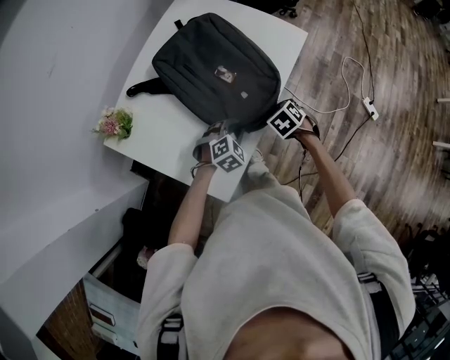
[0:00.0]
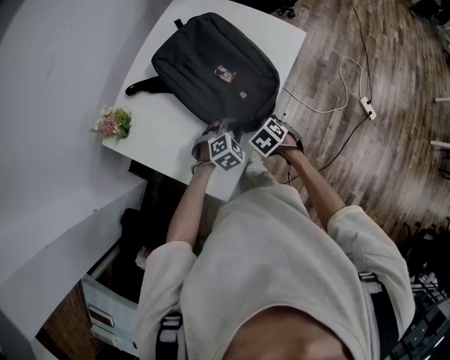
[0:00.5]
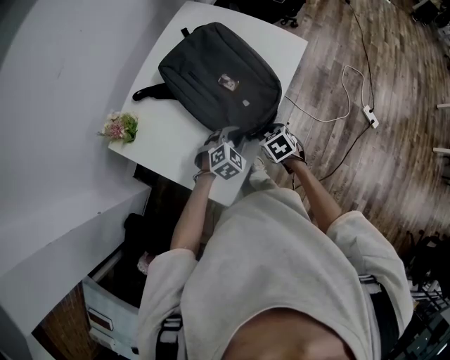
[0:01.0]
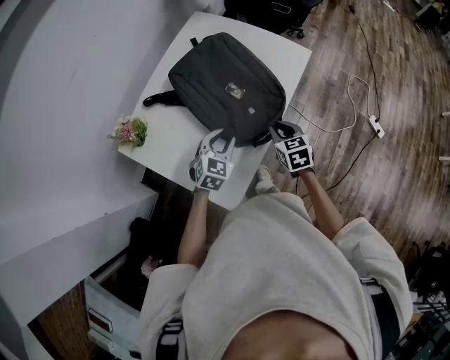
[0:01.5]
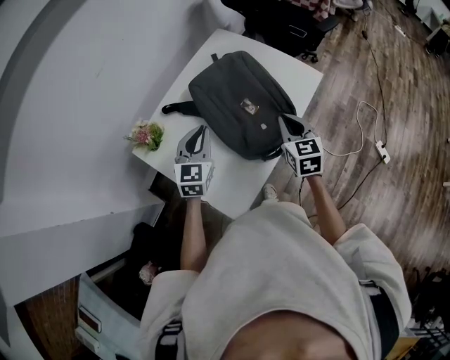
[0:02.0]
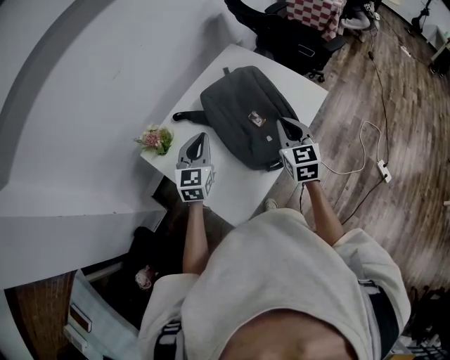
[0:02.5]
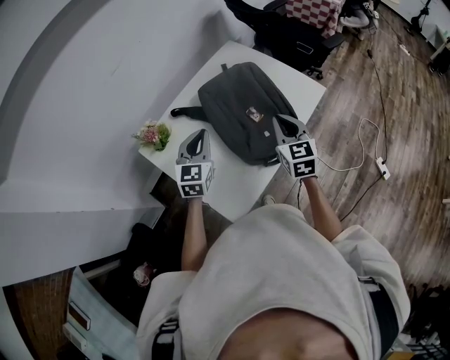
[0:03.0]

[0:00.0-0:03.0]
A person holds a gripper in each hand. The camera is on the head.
0:00.0 to 0:01.5: The two grippers go about 10 cm upward. The left gripper turns by roughly 30 degrees. Meanwhile the right gripper angles its fingers upward, by about 30 degrees.
0:01.5 to 0:03.0: The right gripper moves upward, roughly 15 cm, and swivels approximately 30 degrees. The left gripper heads upward and to the left, covering approximately 20 cm, rotates some 30 degrees, and closes.

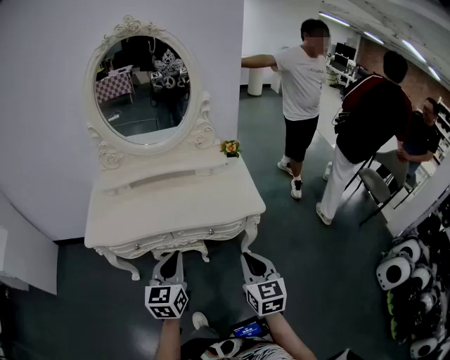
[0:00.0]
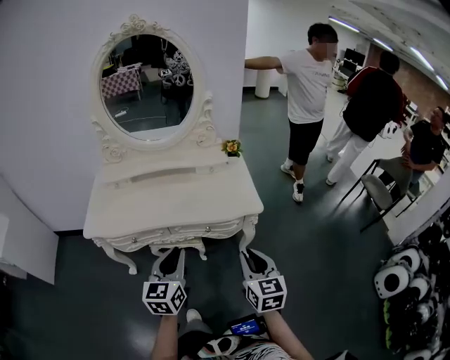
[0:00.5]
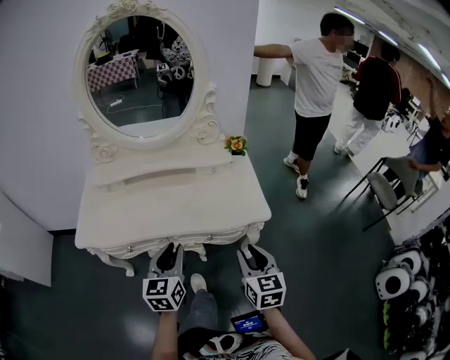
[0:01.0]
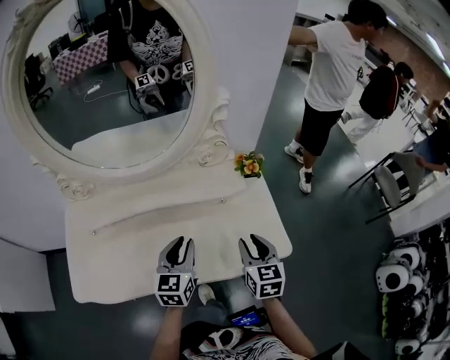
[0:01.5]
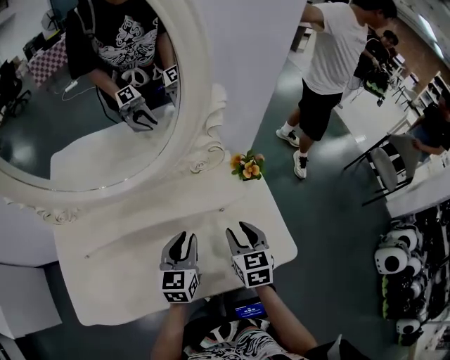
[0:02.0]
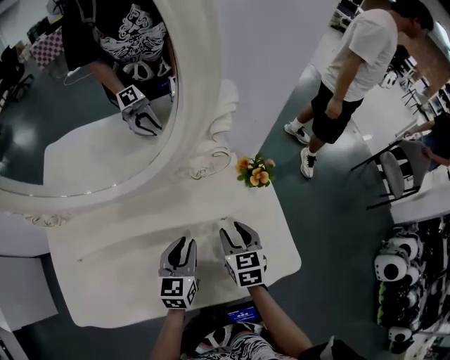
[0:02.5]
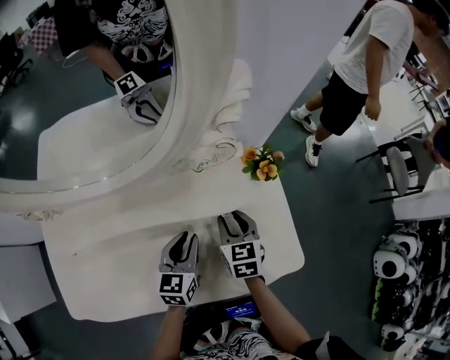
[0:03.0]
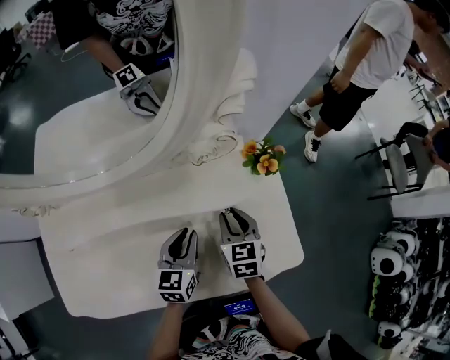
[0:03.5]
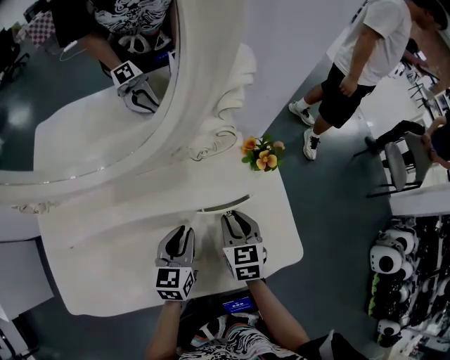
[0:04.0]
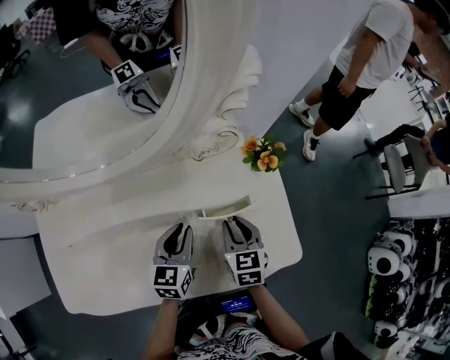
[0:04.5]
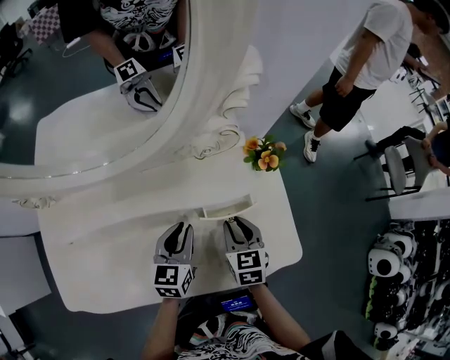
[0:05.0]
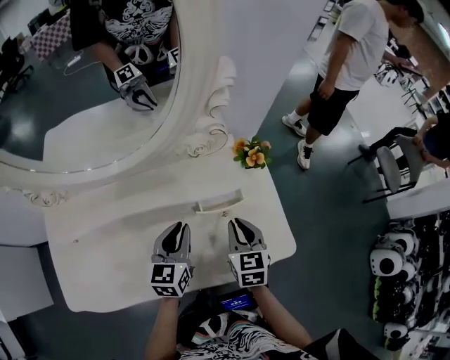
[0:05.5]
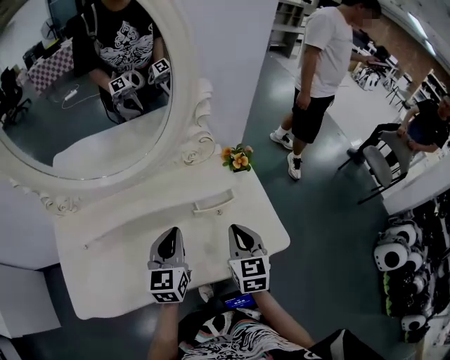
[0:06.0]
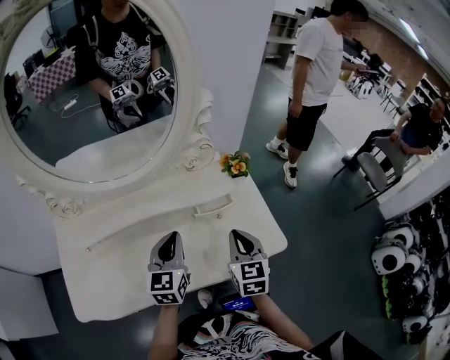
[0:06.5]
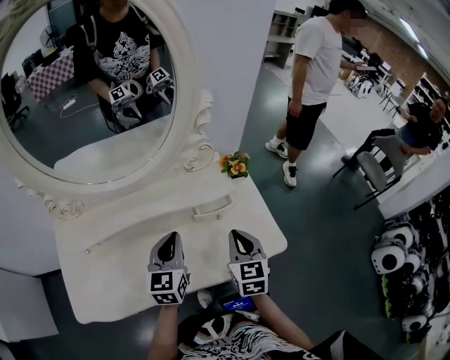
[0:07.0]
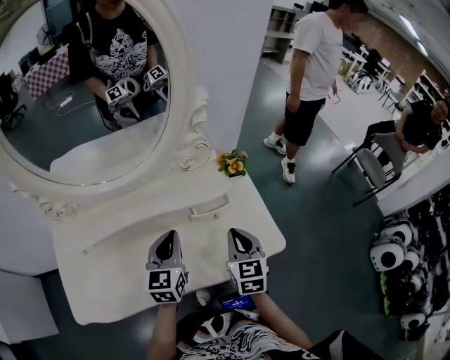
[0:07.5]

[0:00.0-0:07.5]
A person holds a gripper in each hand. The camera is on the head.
0:00.0 to 0:02.0: Both grippers are carried forward, approximately 50 cm. The left gripper opens up. The right gripper opens up.
0:02.0 to 0:04.0: The two grippers go approximately 10 cm downward.
0:04.0 to 0:05.5: The right gripper changes place by roughly 5 cm. The left gripper travels upward by roughly 5 cm.
0:05.5 to 0:07.5: The left gripper shifts approximately 5 cm upward. Meanwhile the right gripper goes about 10 cm upward and backward.

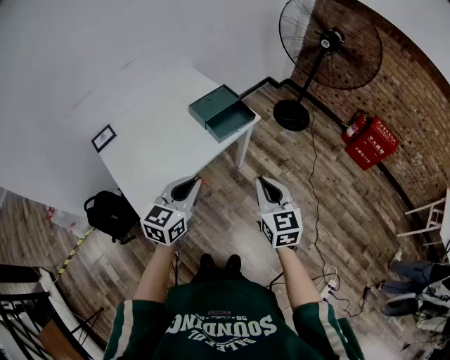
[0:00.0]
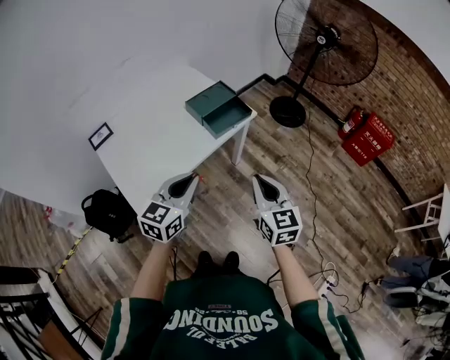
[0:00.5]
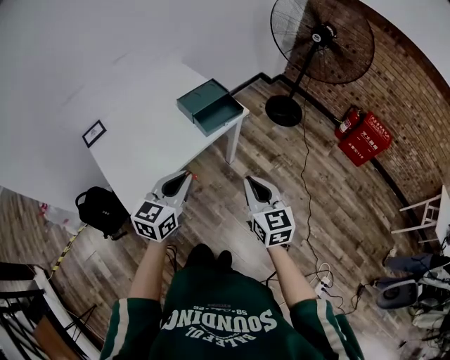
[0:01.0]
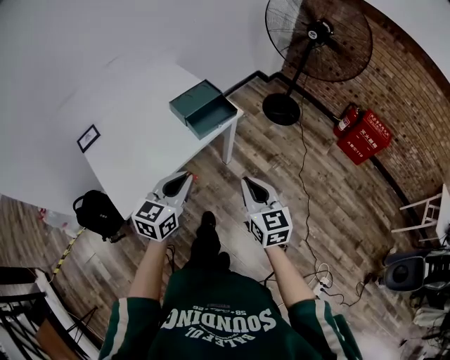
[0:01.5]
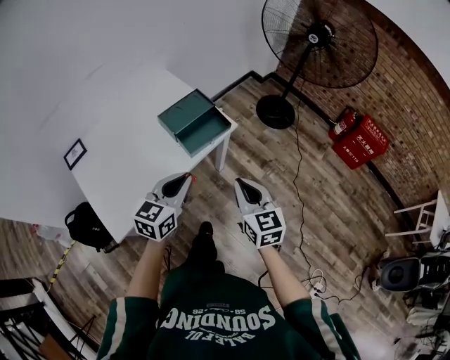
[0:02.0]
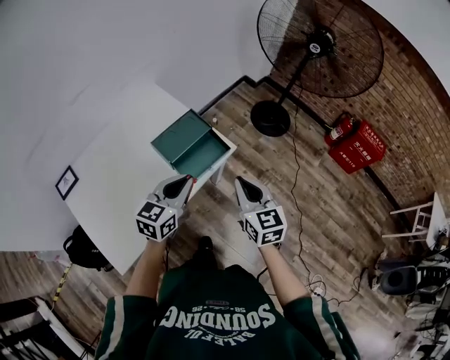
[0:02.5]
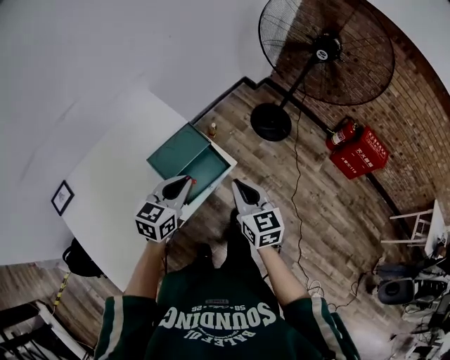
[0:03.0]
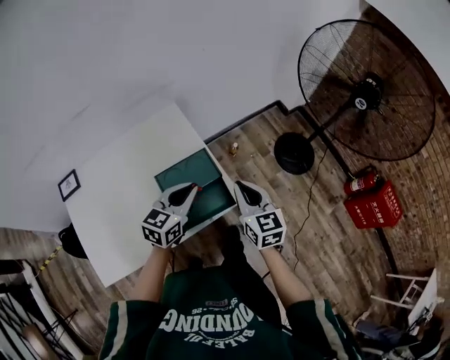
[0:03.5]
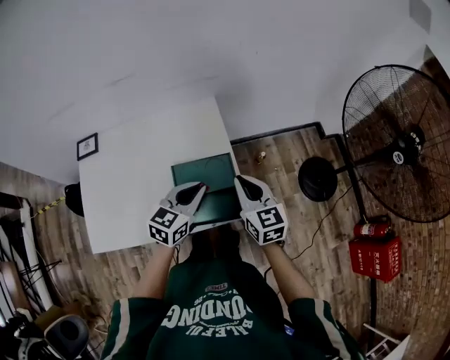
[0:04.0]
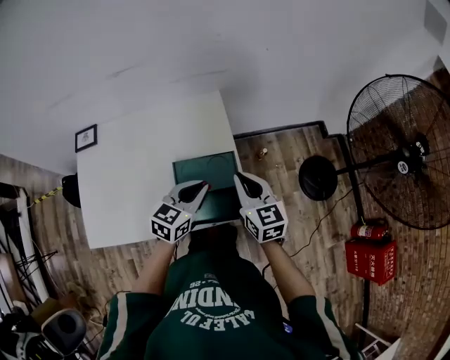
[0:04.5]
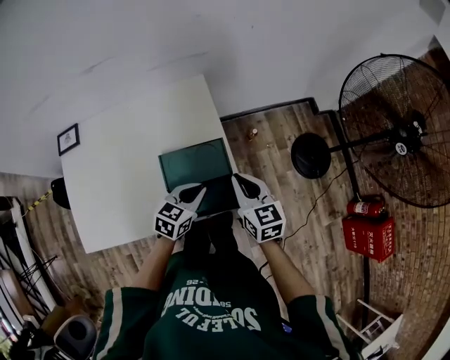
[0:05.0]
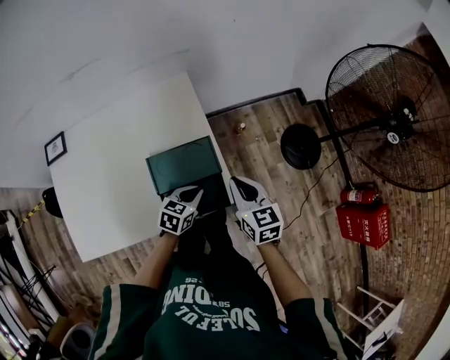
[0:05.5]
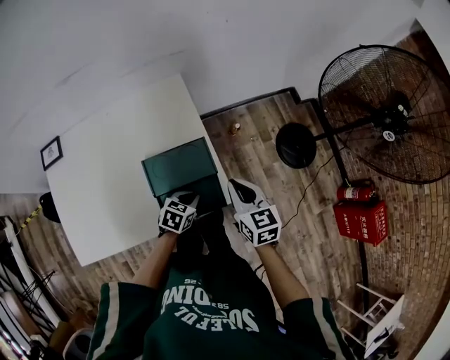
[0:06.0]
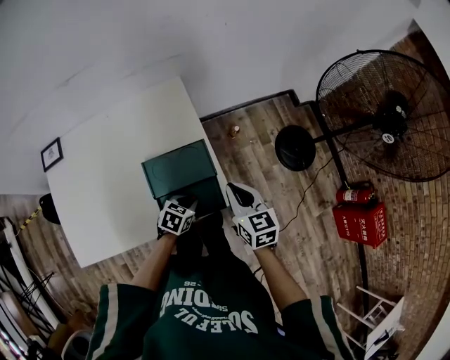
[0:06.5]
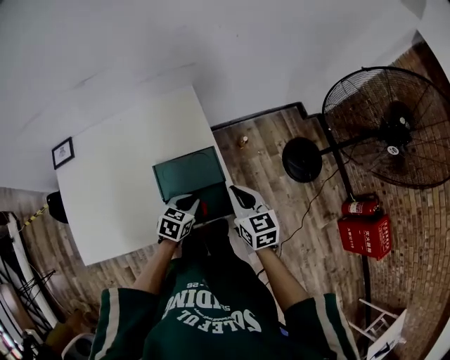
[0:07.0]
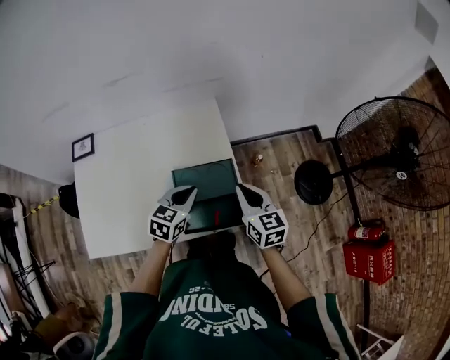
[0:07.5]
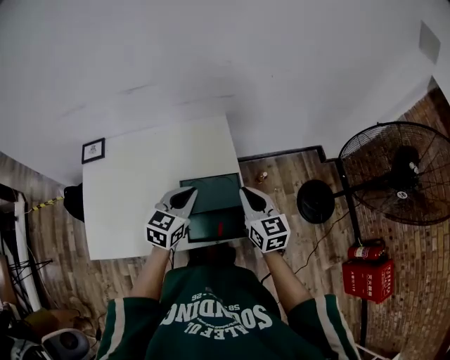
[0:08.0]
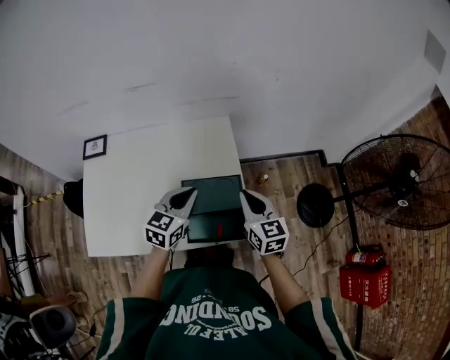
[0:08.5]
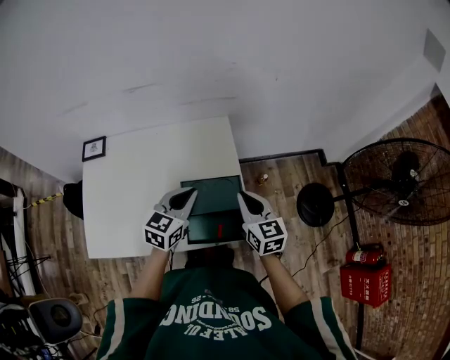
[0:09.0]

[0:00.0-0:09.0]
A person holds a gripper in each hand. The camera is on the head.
0:00.0 to 0:02.0: The right gripper travels forward by about 10 cm. The left gripper shifts about 15 cm forward and to the right.
0:02.0 to 0:04.5: The left gripper shifts by approximately 35 cm, and swivels roughly 30 degrees; the right gripper moves about 40 cm, and rotates approximately 30 degrees.
0:04.5 to 0:07.0: The left gripper shifts approximately 15 cm downward, and changes its angle by about 20 degrees. Meanwhile the right gripper travels downward by some 5 cm.
0:07.0 to 0:09.0: The left gripper heads upward and to the left, covering roughly 20 cm, and changes its angle by roughly 30 degrees. Meanwhile the right gripper shifts approximately 10 cm upward and to the left.

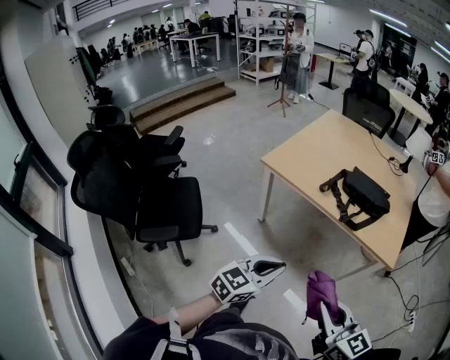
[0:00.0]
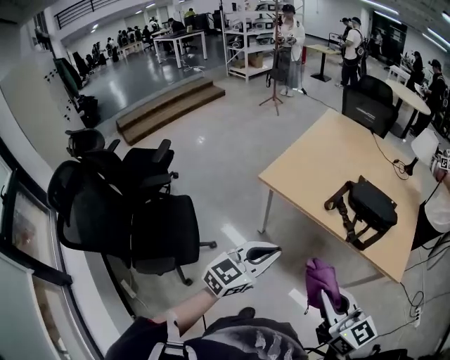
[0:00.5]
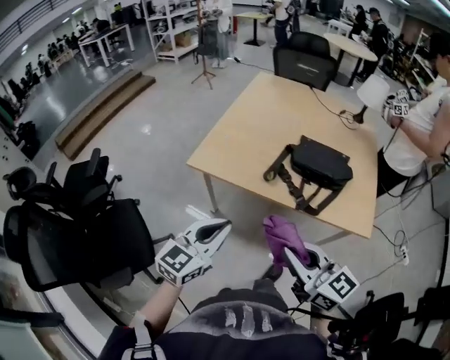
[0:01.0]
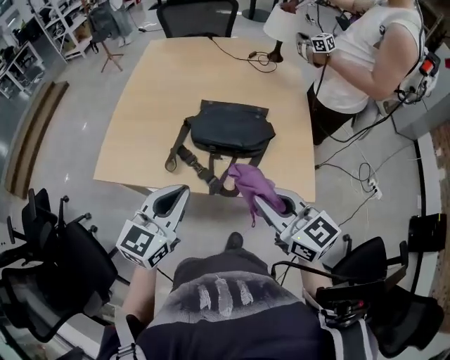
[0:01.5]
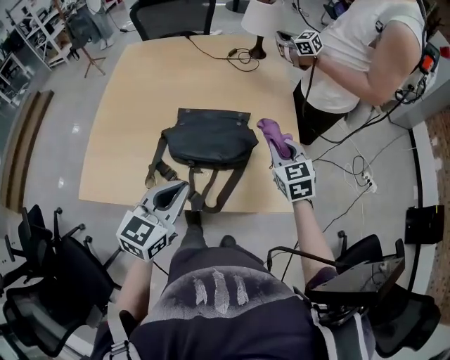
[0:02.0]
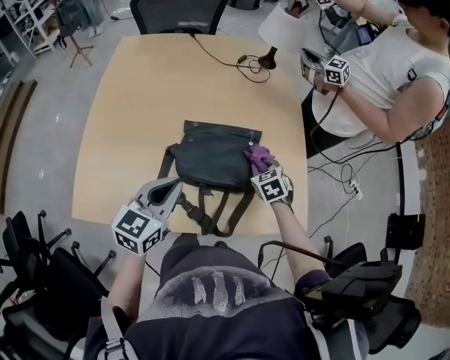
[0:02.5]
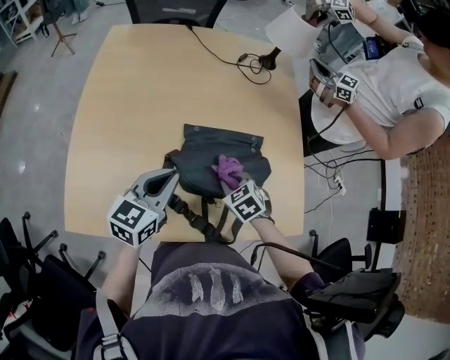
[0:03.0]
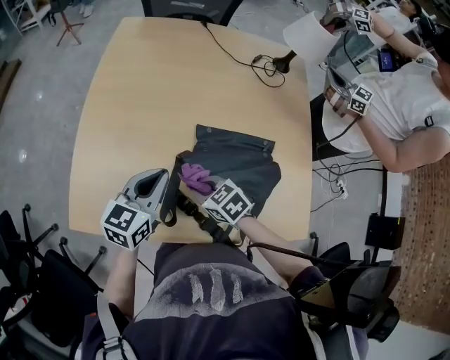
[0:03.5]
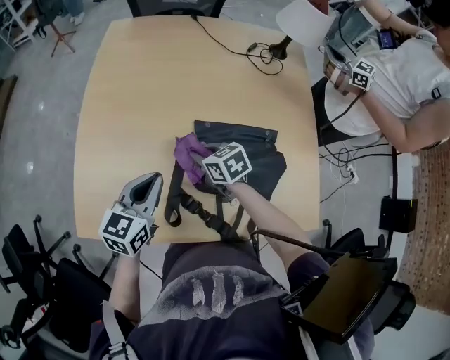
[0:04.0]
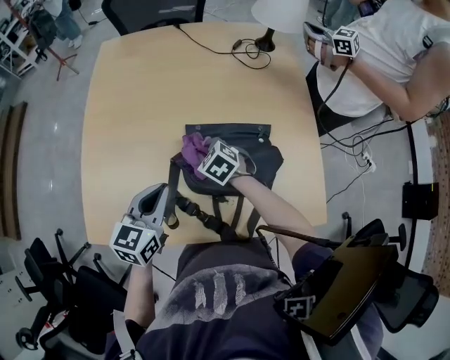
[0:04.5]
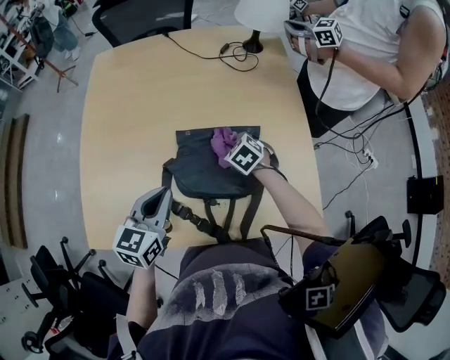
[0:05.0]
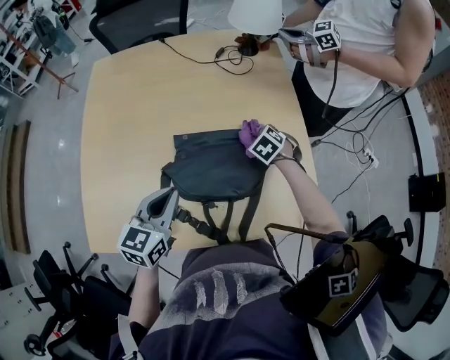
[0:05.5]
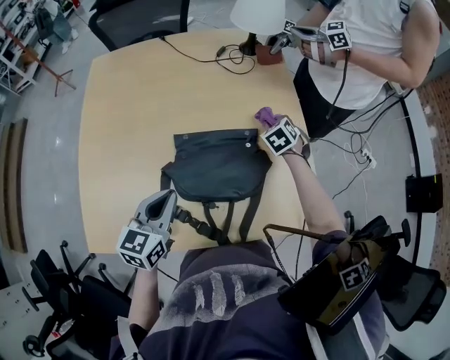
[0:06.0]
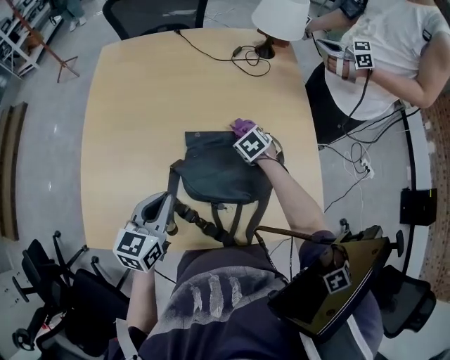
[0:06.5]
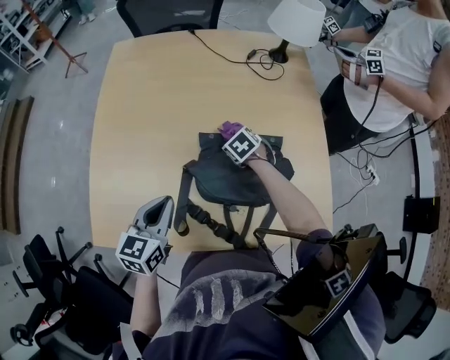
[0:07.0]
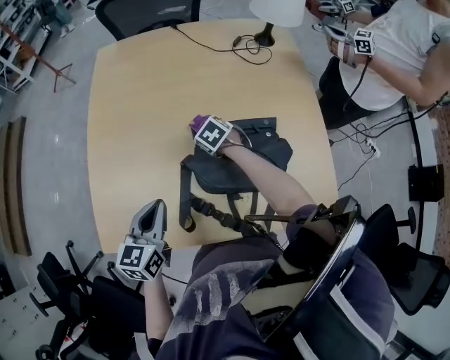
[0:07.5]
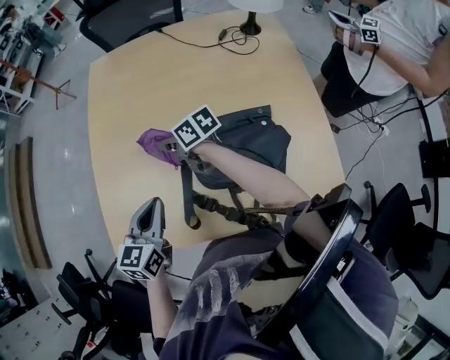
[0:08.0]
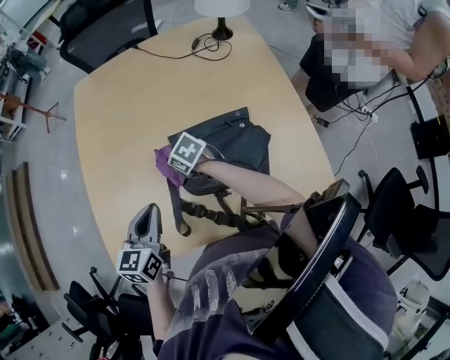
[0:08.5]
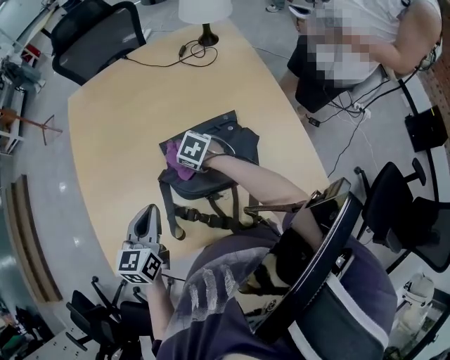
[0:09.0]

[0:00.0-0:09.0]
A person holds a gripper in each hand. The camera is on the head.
0:00.0 to 0:02.0: The pair of grippers is taken some 60 cm. The right gripper changes its angle by approximately 50 degrees.
0:02.0 to 0:04.5: The right gripper shifts by approximately 35 cm, and turns by approximately 40 degrees. The left gripper moves some 25 cm.
0:07.0 to 0:09.0: The right gripper goes roughly 5 cm backward, and reaches approximately 20 cm to the left, then returns.
